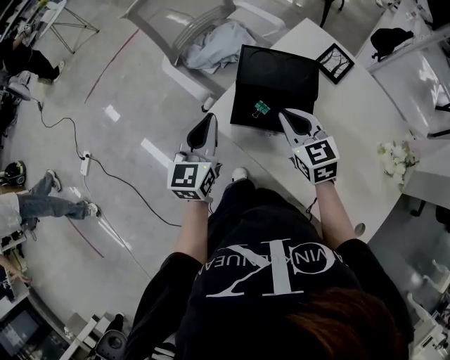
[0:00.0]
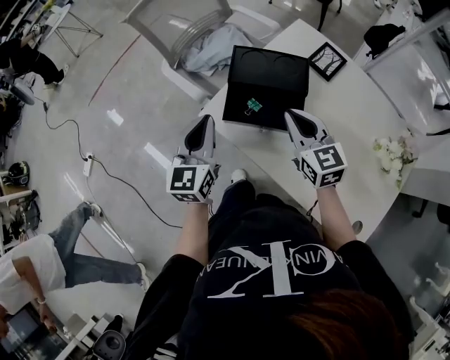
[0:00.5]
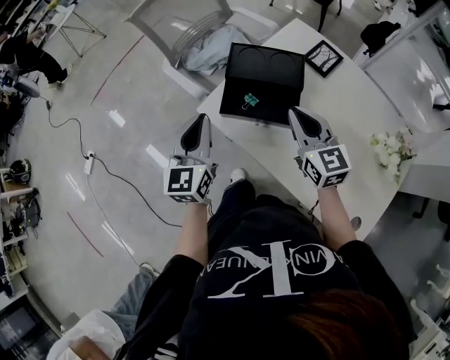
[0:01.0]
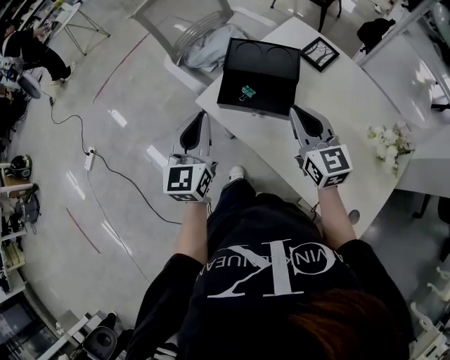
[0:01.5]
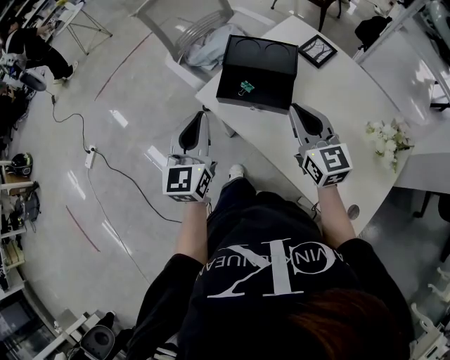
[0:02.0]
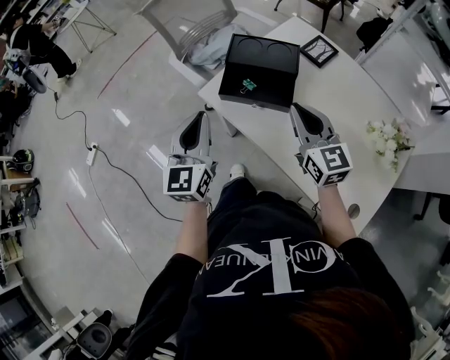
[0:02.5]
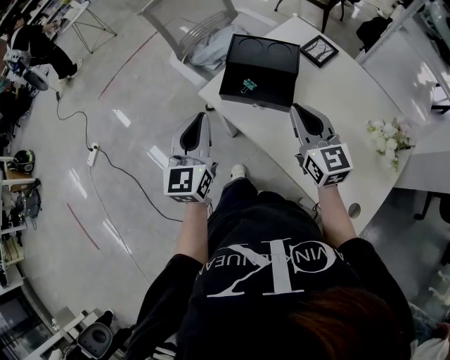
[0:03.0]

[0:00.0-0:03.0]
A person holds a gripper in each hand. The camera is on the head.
0:00.0 to 0:01.5: The left gripper moves backward and upward, approximately 10 cm, while the right gripper heads backward, upward and to the right, covering about 10 cm.
0:01.5 to 0:03.0: The grippers stay close to where they were, moving slightly.

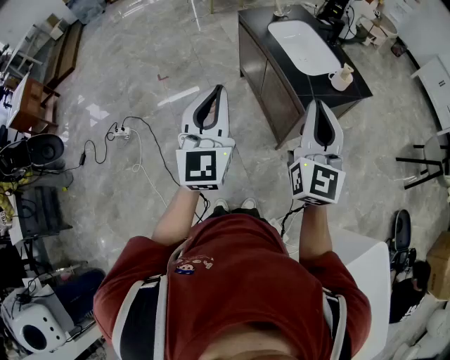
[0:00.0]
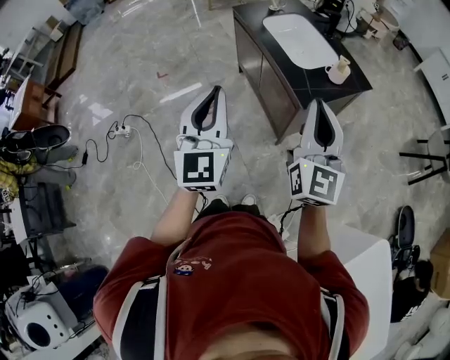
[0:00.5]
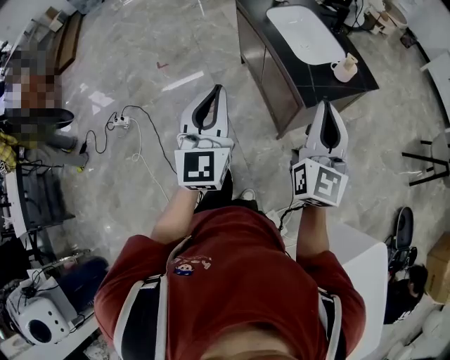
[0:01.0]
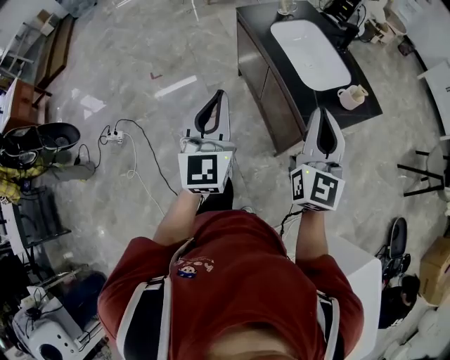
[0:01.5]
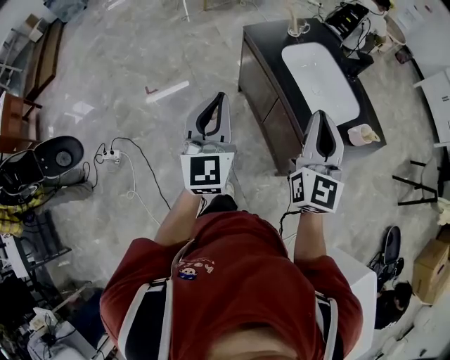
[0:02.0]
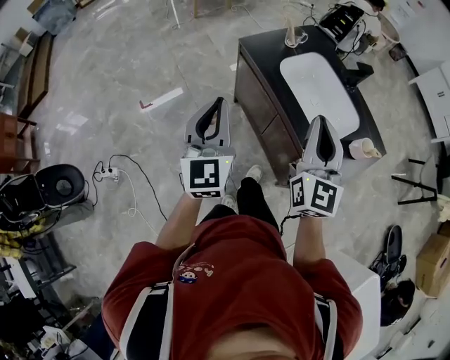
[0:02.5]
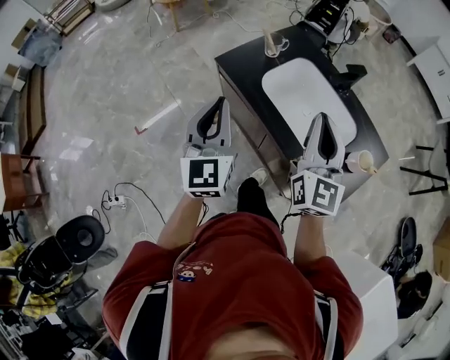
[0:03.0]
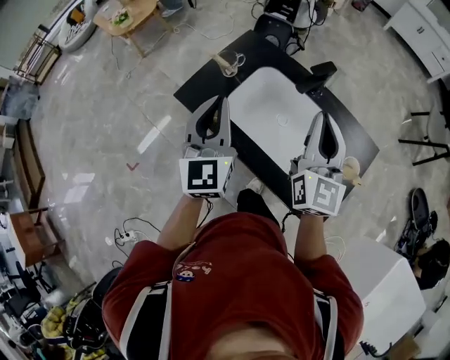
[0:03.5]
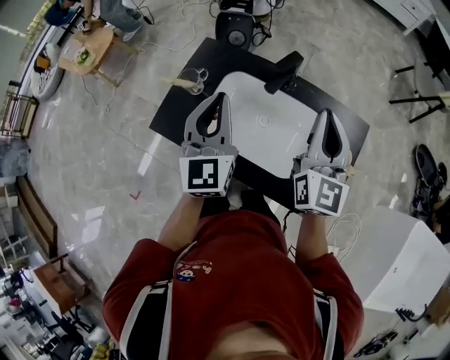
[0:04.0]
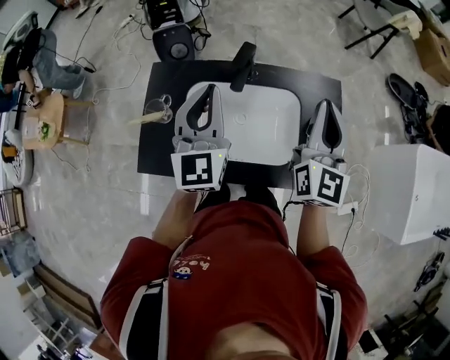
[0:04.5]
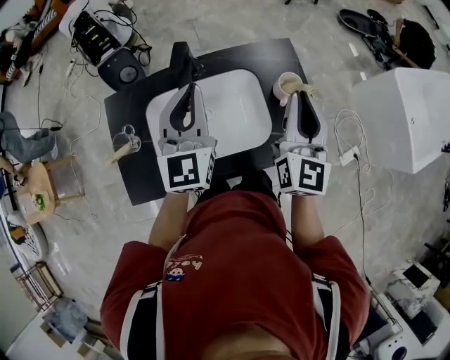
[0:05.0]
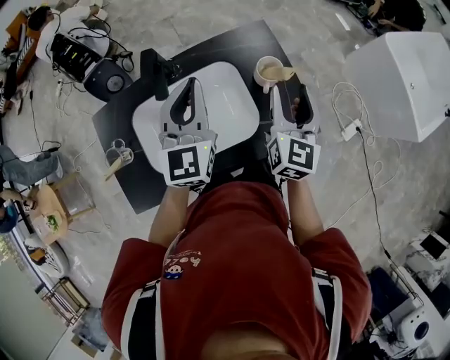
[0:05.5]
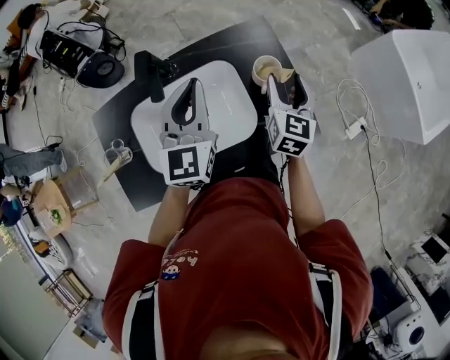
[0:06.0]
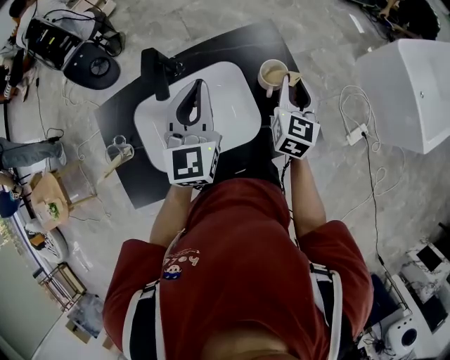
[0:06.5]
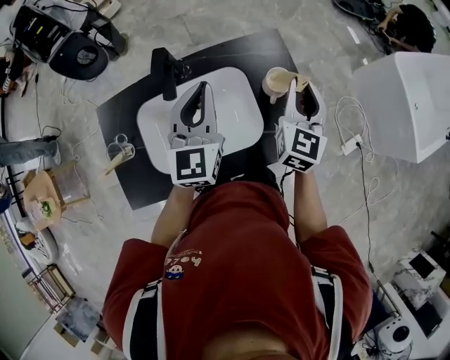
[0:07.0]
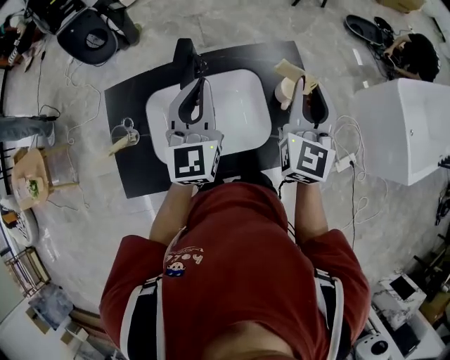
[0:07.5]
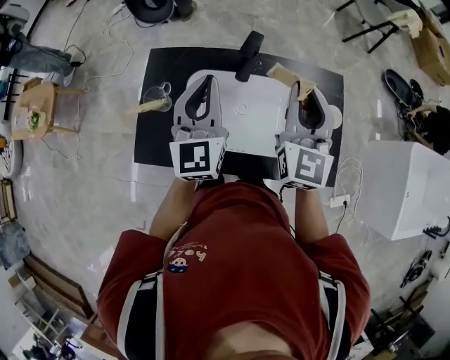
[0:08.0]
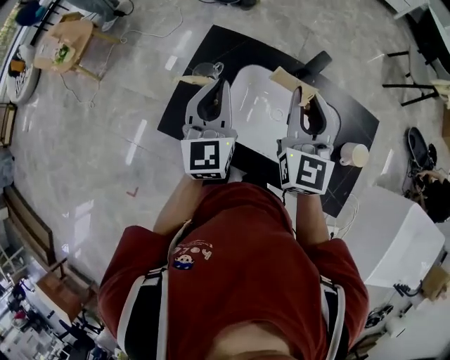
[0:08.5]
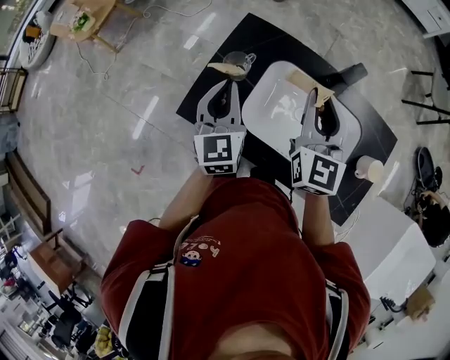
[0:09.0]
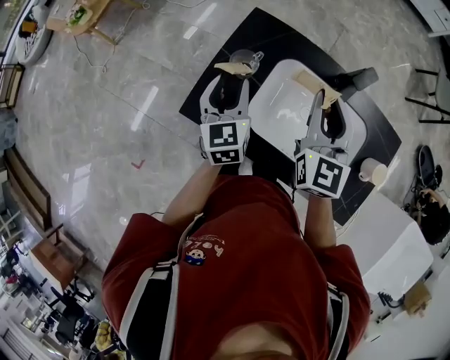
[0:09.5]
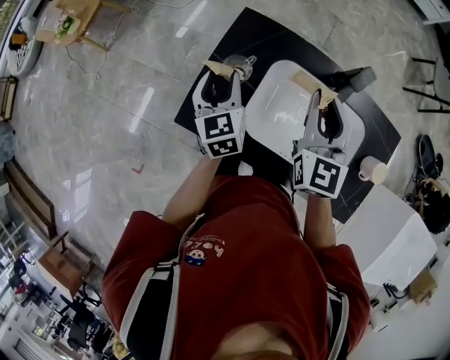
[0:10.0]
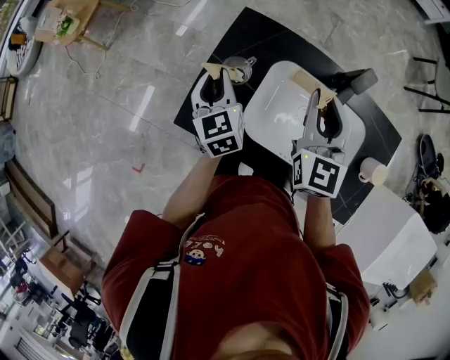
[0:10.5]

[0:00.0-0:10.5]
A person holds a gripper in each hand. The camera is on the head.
0:00.0 to 0:02.0: Both grippers travel together forward, about 30 cm.
0:02.0 to 0:04.0: The right gripper moves about 35 cm, and changes its angle by some 40 degrees, while the left gripper shifts by about 50 cm, and changes its angle by roughly 40 degrees.
0:04.0 to 0:06.5: The left gripper changes place by approximately 25 cm, and turns by roughly 50 degrees; the right gripper travels downward by some 20 cm, changes its angle by some 50 degrees, and opens, then closes once more.
0:06.5 to 0:08.5: The left gripper changes place by roughly 35 cm, and rotates roughly 40 degrees; the right gripper moves about 40 cm, and rotates about 60 degrees.
0:08.5 to 0:10.5: The right gripper shifts roughly 10 cm downward, forward and to the left. Meanwhile the left gripper is displaced downward, to the left and forward by some 20 cm, turns by approximately 30 degrees, and opens, then closes again.

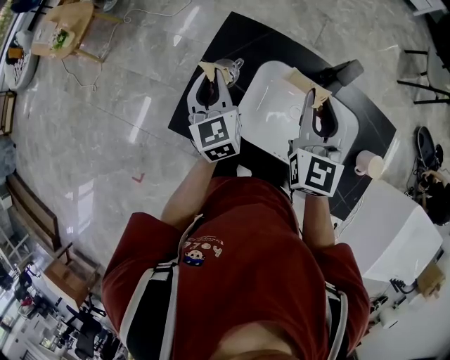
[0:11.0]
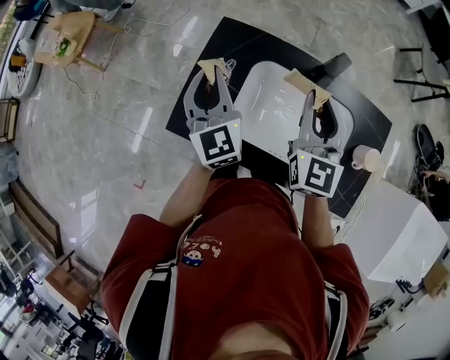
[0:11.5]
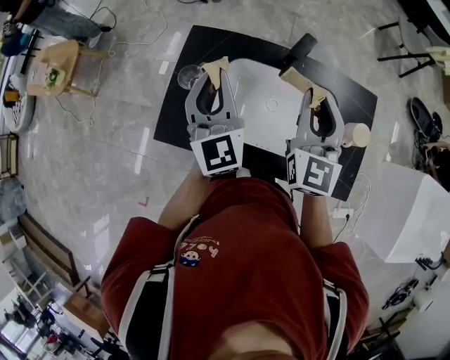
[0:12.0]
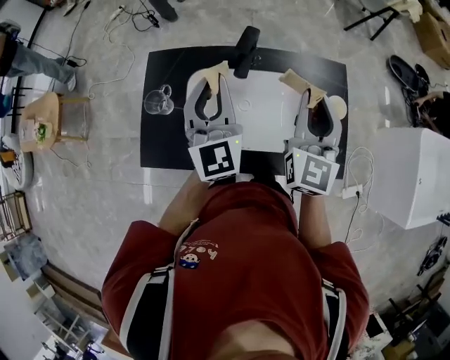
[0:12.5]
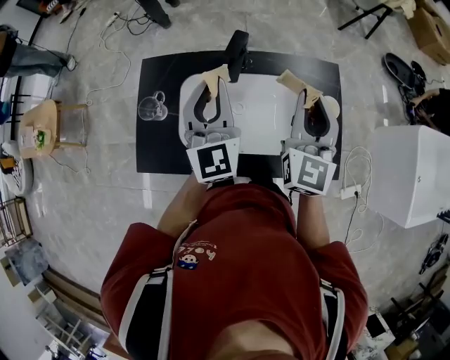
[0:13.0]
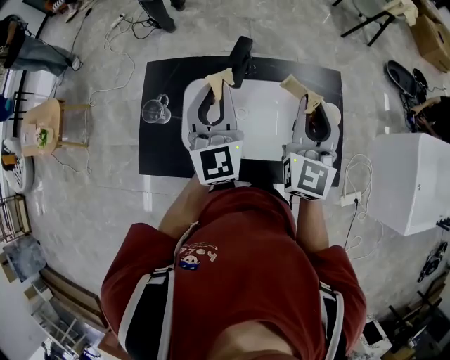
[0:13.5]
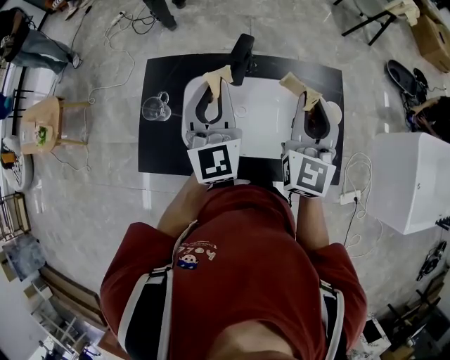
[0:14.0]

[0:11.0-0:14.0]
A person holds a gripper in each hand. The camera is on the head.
0:11.0 to 0:12.5: The left gripper changes place by some 25 cm, and rotates approximately 40 degrees, while the right gripper shifts by roughly 20 cm, and changes its angle by about 30 degrees.
0:12.5 to 0:14.0: The grippers stay close to where they were, moving slightly.

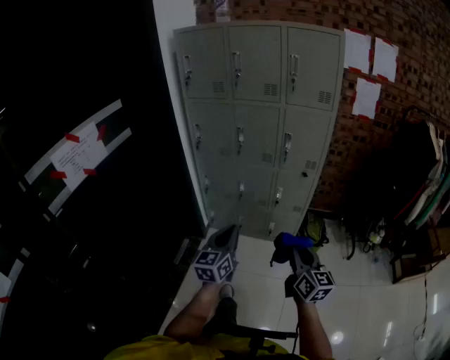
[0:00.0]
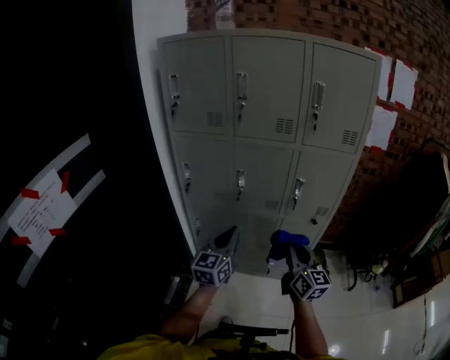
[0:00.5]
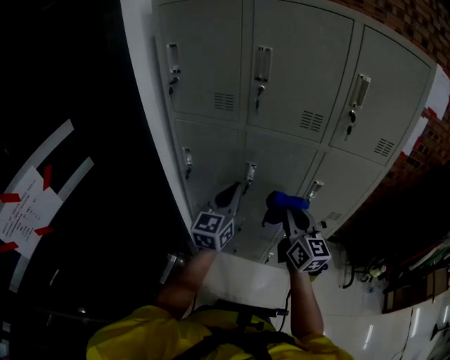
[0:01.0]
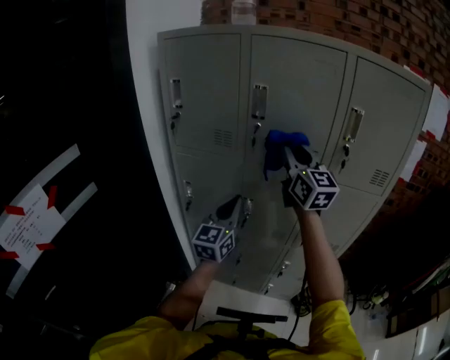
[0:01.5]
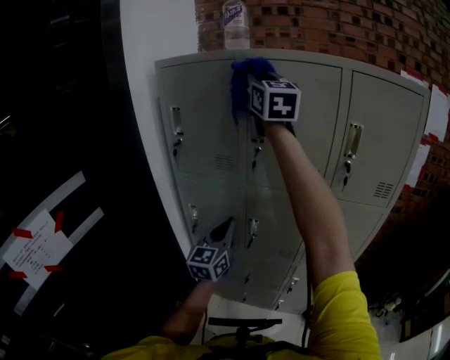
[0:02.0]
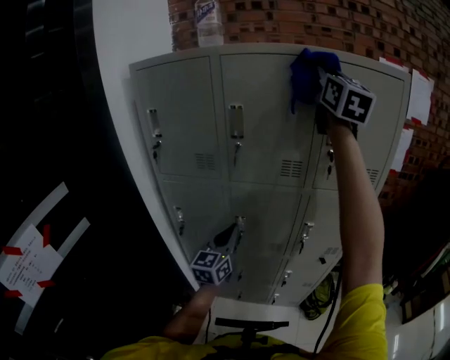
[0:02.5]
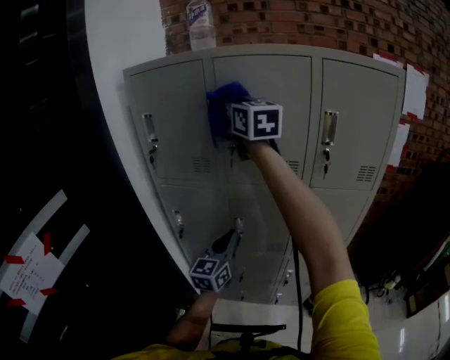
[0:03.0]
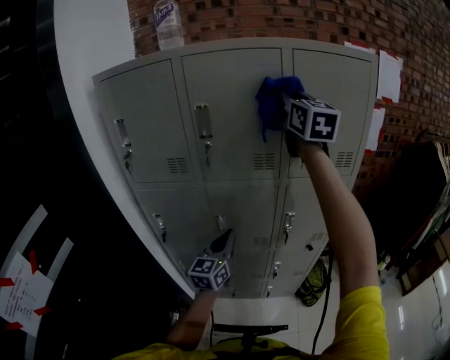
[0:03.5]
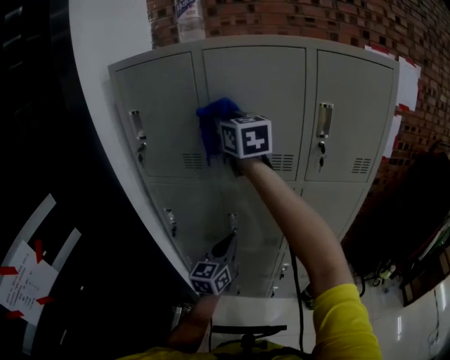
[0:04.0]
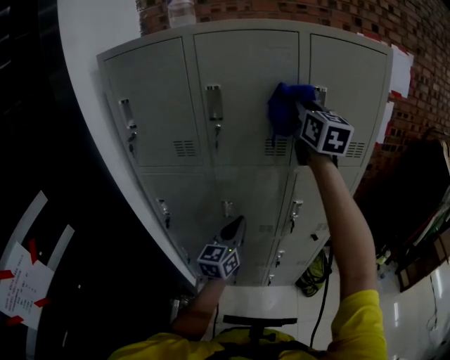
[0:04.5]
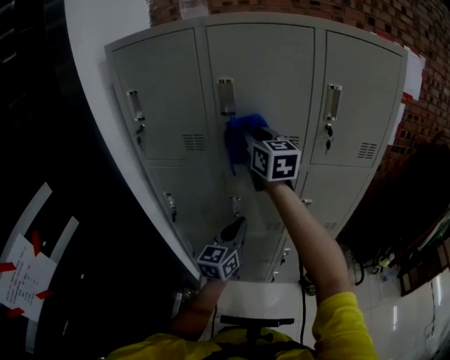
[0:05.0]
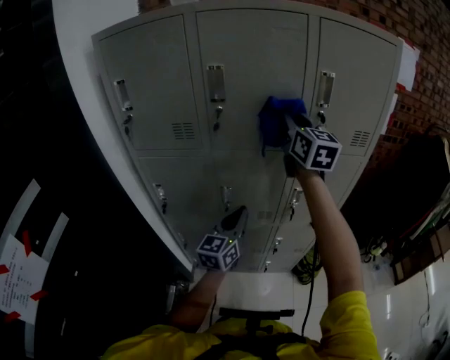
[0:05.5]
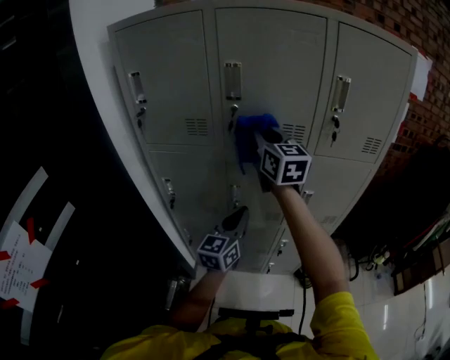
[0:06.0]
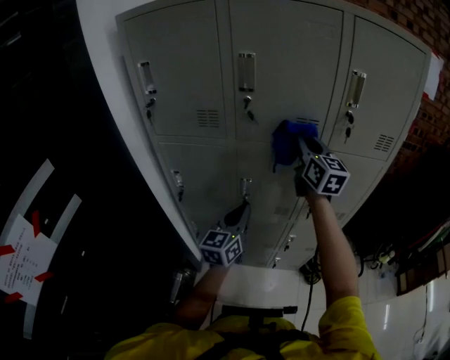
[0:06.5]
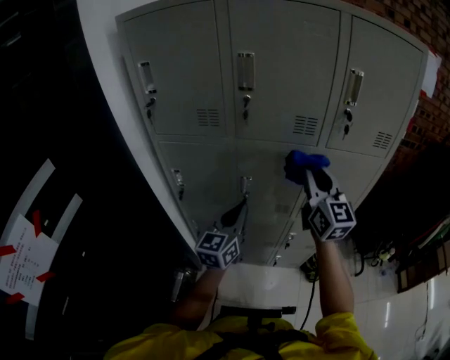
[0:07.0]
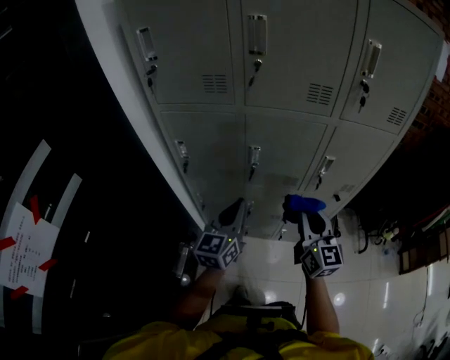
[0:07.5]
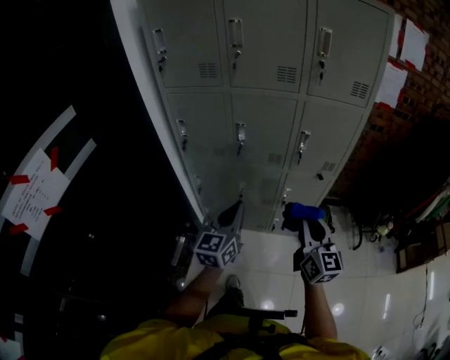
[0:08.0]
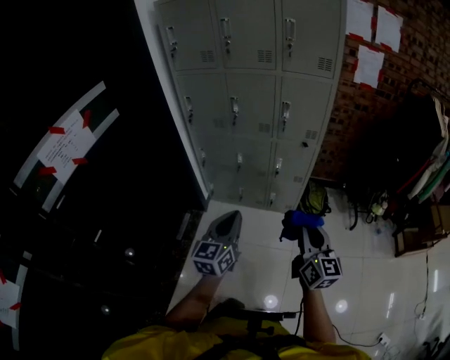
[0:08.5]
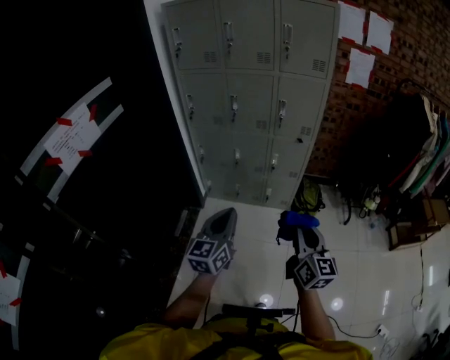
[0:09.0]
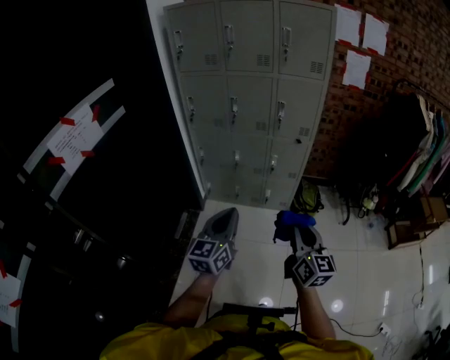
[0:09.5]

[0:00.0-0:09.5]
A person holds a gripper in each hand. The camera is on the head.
0:00.0 to 0:02.0: Both grippers are carried forward, roughly 60 cm. The right gripper is displaced upward by roughly 50 cm, and rotates about 30 degrees.
0:02.0 to 0:04.0: The right gripper moves left and right over approximately 25 cm, changing direction 3 times, while the left gripper moves downward and to the right, some 10 cm.
0:04.0 to 0:05.5: The right gripper goes left and right, some 25 cm each way, reversing 2 times.
0:05.5 to 0:07.5: The right gripper goes about 35 cm downward and backward, while the left gripper travels to the left and backward by about 10 cm.
0:07.5 to 0:09.5: The pair of grippers is taken backward, approximately 60 cm.
